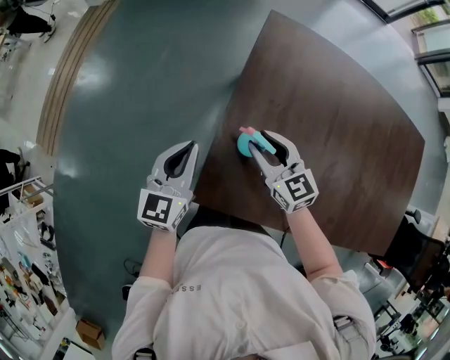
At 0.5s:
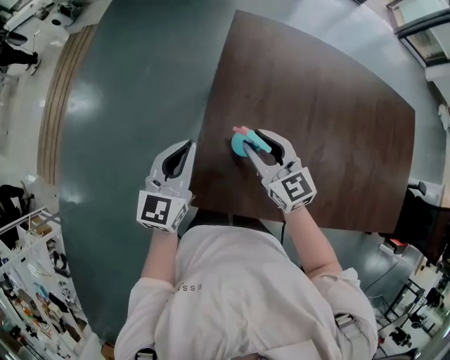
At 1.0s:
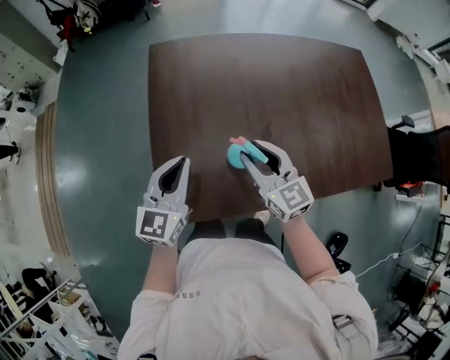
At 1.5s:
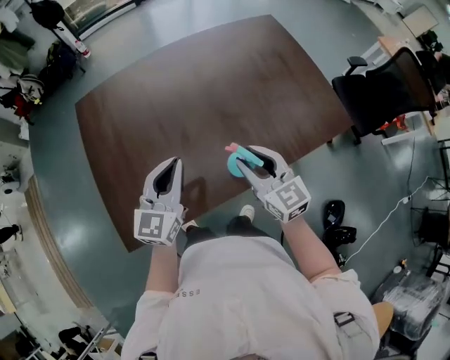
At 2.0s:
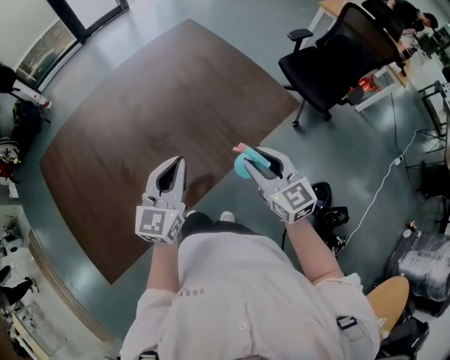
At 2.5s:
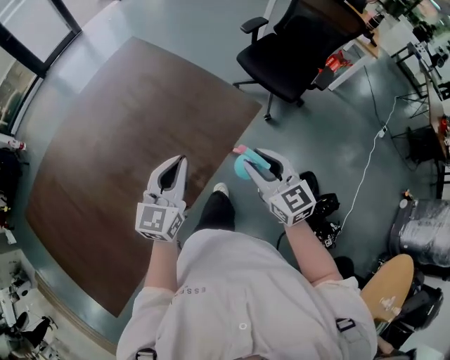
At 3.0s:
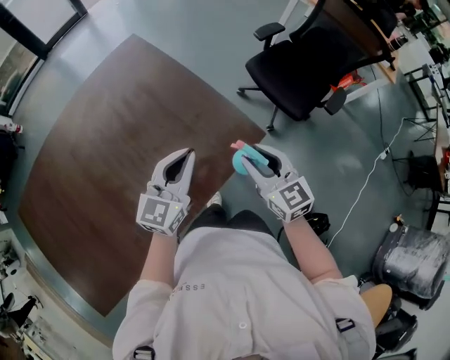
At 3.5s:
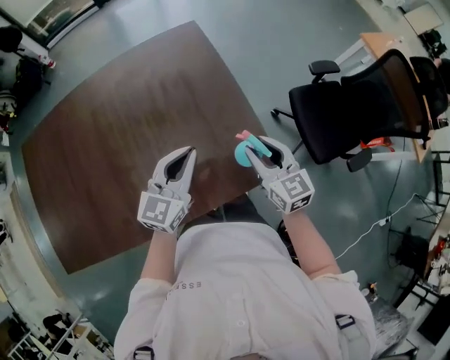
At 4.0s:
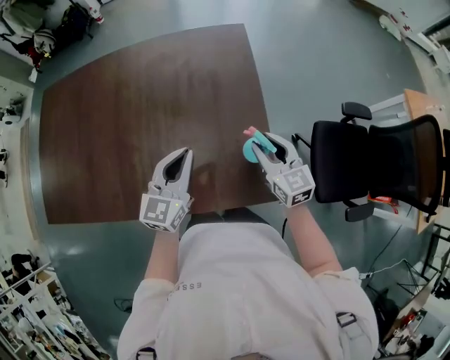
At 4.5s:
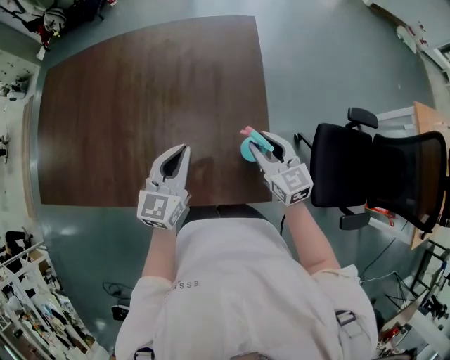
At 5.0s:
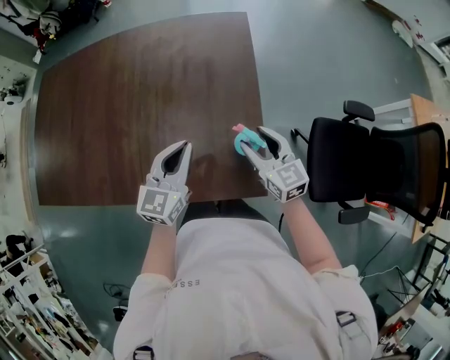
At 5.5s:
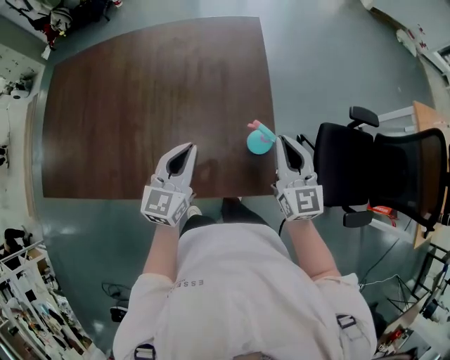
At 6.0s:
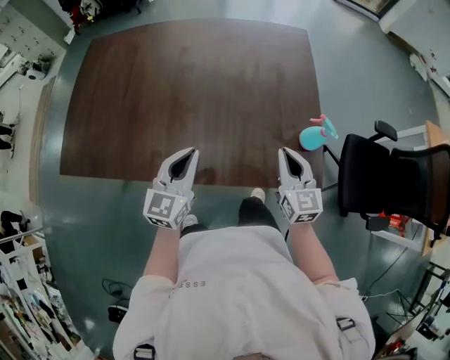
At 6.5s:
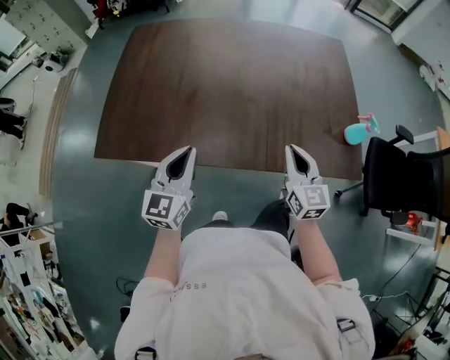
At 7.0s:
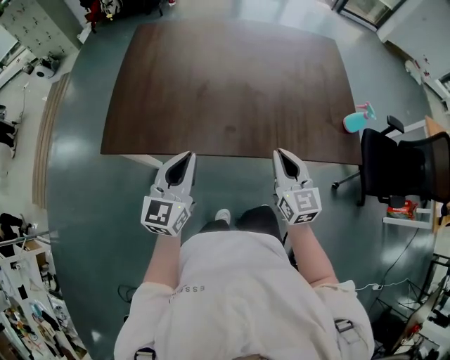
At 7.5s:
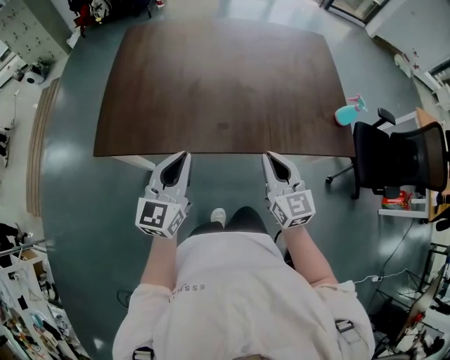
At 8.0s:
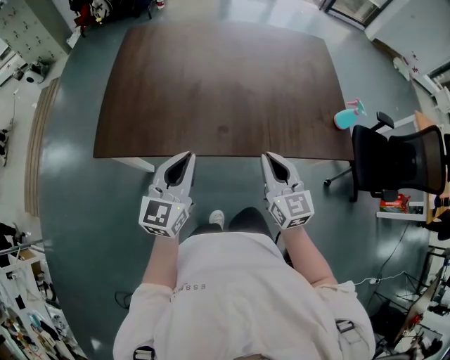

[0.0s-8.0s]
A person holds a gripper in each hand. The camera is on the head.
0.0s to 2.0s: The two grippers travel together, approximately 60 cm. The right gripper changes its angle by approximately 60 degrees. Meanwhile the left gripper swivels some 60 degrees.
2.0s to 4.0s: The right gripper ends up approximately 40 cm from where it was, and rotates about 30 degrees. The left gripper ends up about 30 cm from where it was, and changes its angle by approximately 30 degrees.
4.0s to 6.0s: Both grippers move to the left and backward, some 20 cm. The right gripper closes its fingers.
6.0s to 8.0s: The two grippers go approximately 30 cm to the left and backward.

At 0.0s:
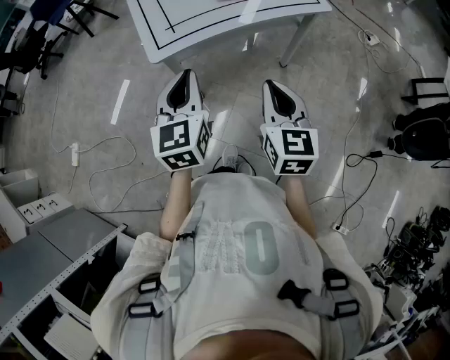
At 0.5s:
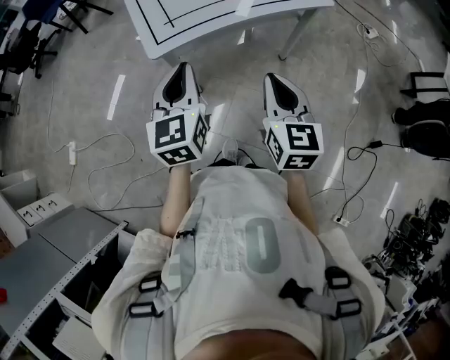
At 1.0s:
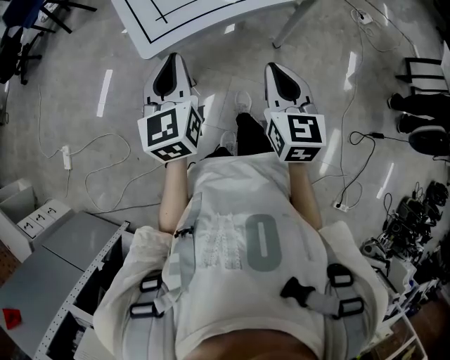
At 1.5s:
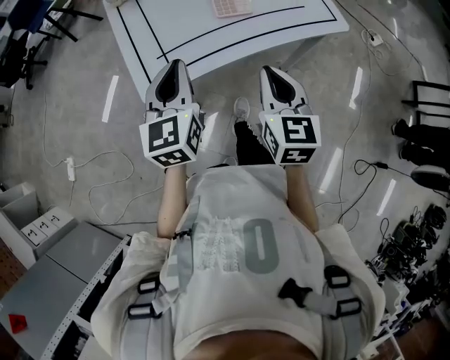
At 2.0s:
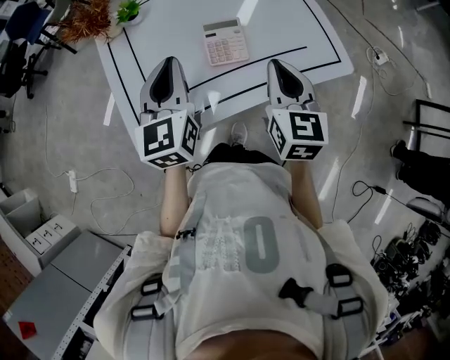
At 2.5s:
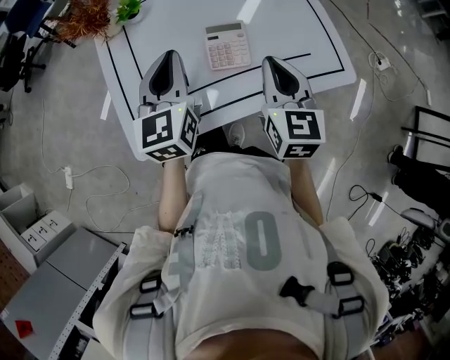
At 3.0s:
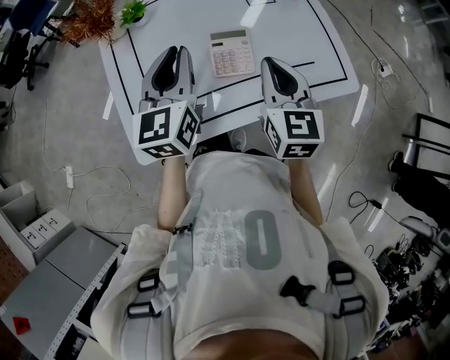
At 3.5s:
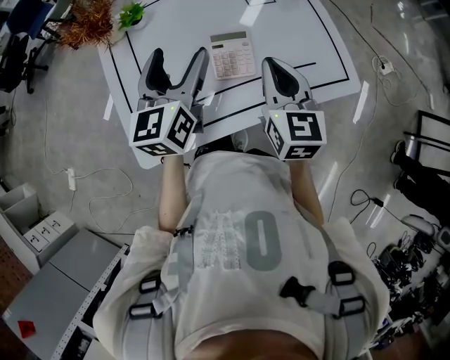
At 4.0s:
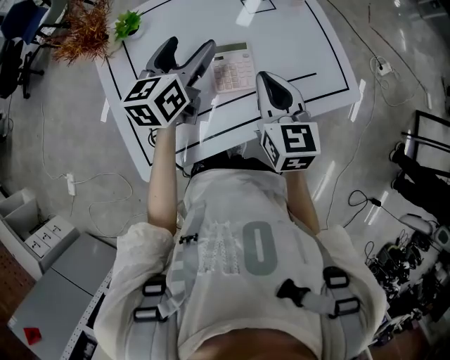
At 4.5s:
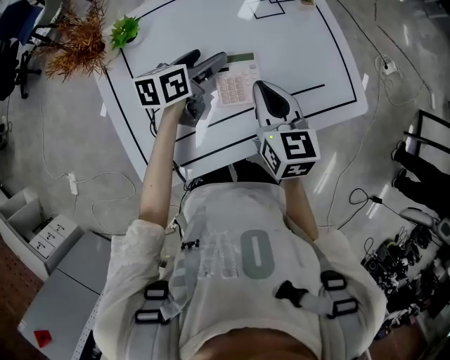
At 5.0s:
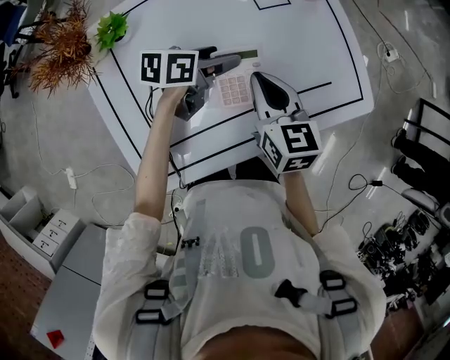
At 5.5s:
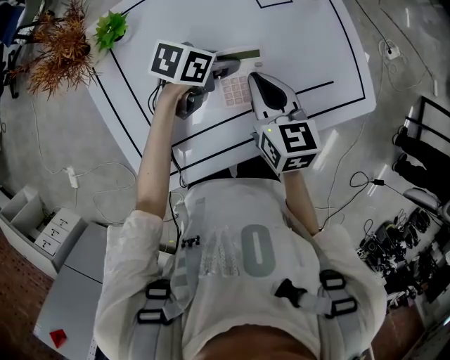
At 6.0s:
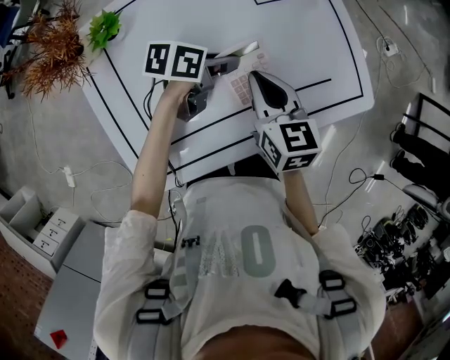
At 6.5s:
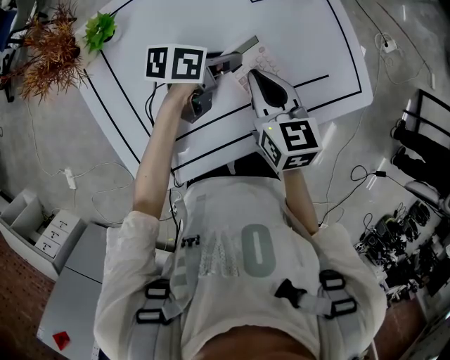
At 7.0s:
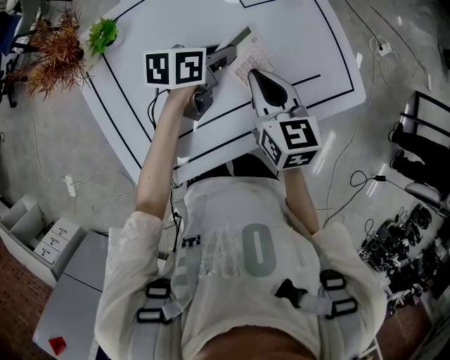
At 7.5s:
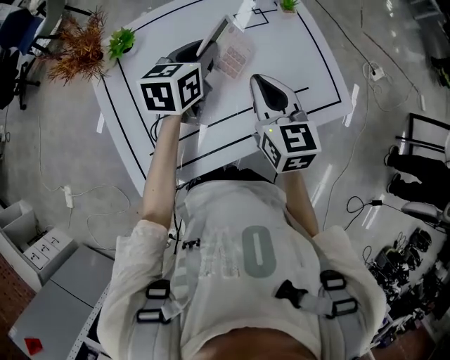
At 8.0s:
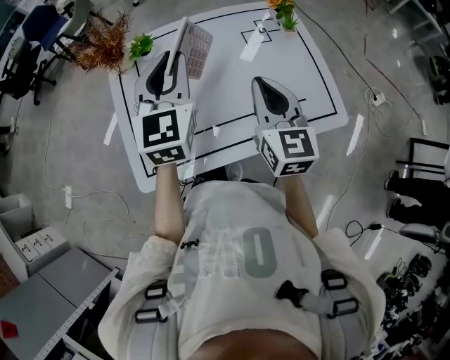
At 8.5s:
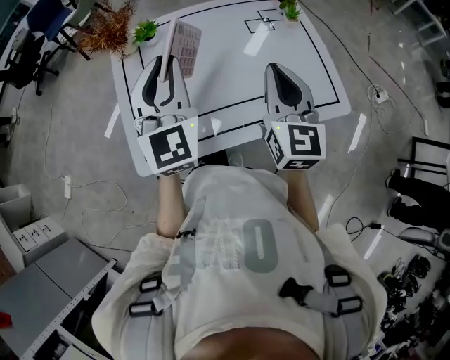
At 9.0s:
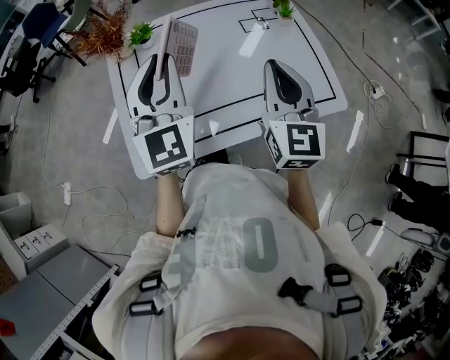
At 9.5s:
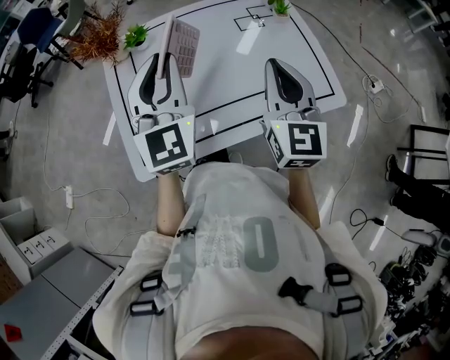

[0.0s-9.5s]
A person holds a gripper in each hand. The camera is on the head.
0.0s to 2.0s: The two grippers go some 40 cm forward.
2.0s to 4.0s: The left gripper moves forward, approximately 15 cm, changes its angle by roughly 30 degrees, and opens, while the right gripper travels forward by roughly 10 cm.
4.0s to 5.5s: The left gripper shifts about 15 cm downward, swivels roughly 50 degrees, and closes, while the right gripper heads downward, covering some 5 cm.
5.5s to 7.5s: The left gripper is displaced upward by about 15 cm, and changes its angle by some 40 degrees; the right gripper is displaced upward by some 10 cm.
7.5s to 9.5s: The right gripper shifts approximately 10 cm upward and backward, and changes its angle by approximately 20 degrees. The left gripper travels backward, upward and to the left by about 20 cm, and swivels roughly 50 degrees.

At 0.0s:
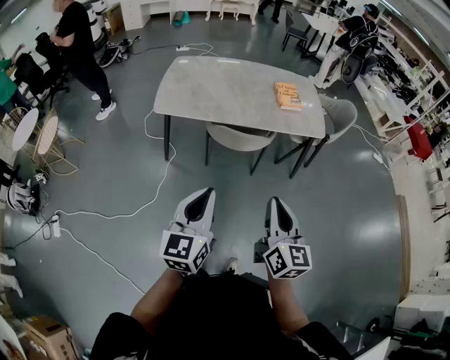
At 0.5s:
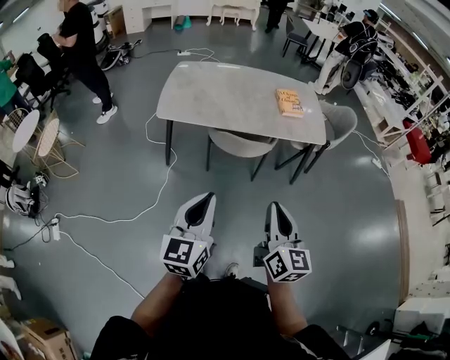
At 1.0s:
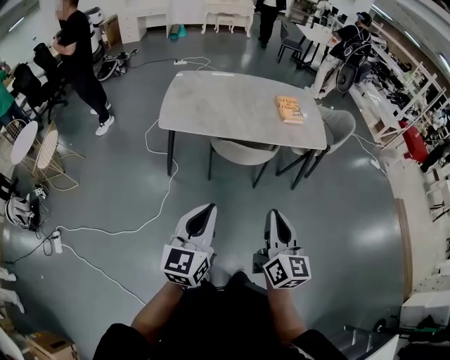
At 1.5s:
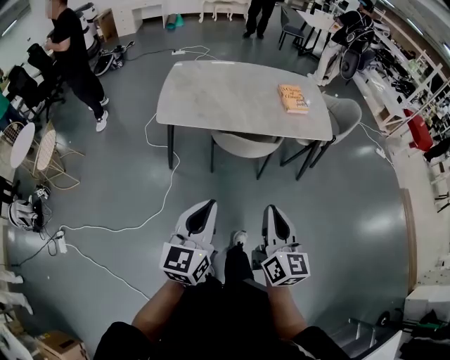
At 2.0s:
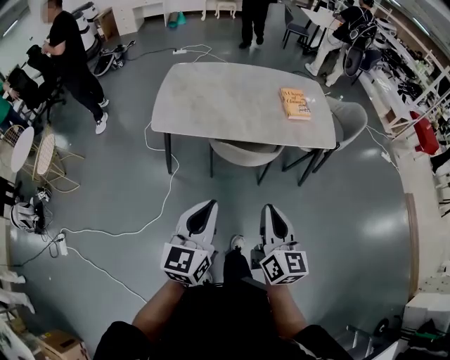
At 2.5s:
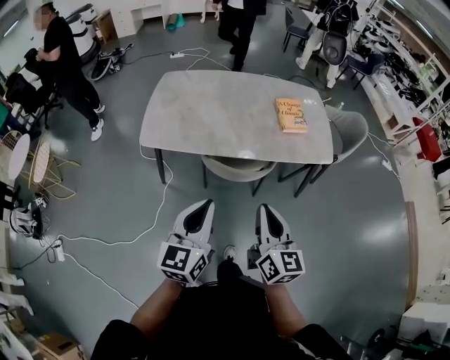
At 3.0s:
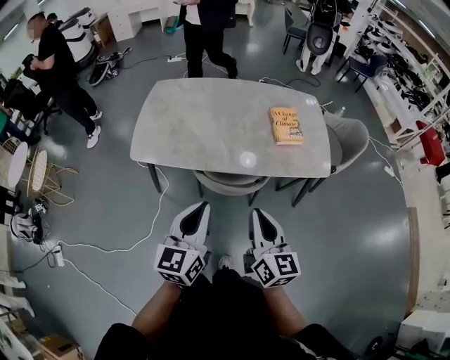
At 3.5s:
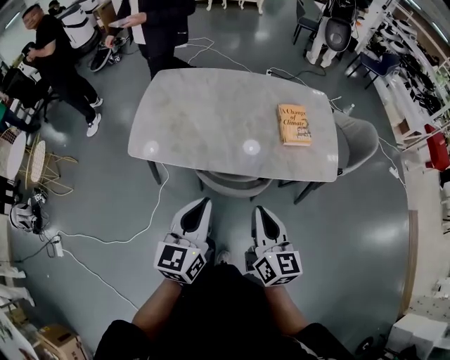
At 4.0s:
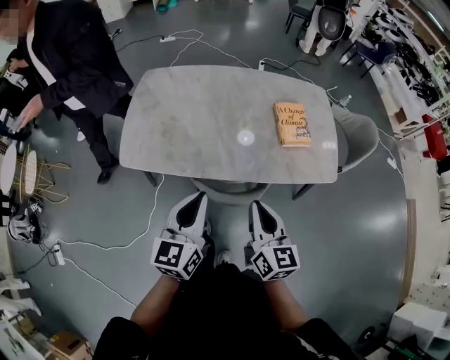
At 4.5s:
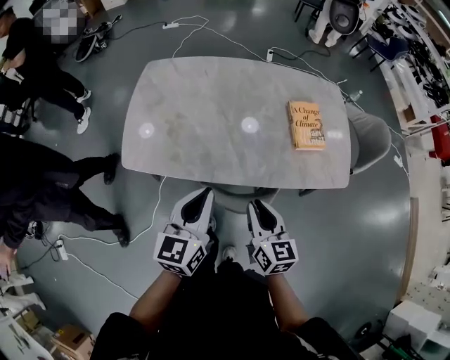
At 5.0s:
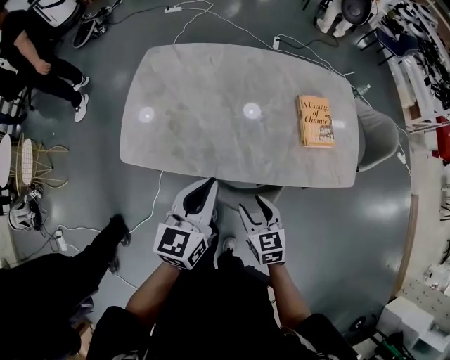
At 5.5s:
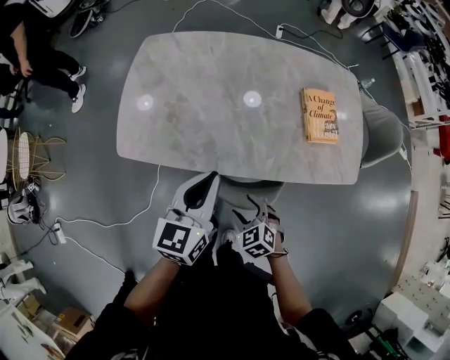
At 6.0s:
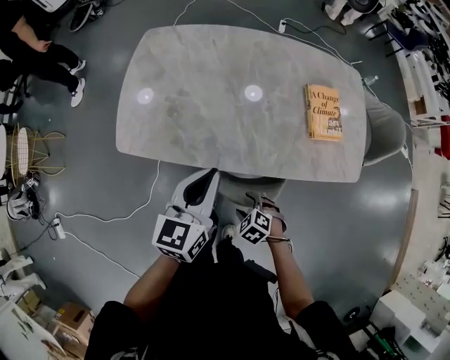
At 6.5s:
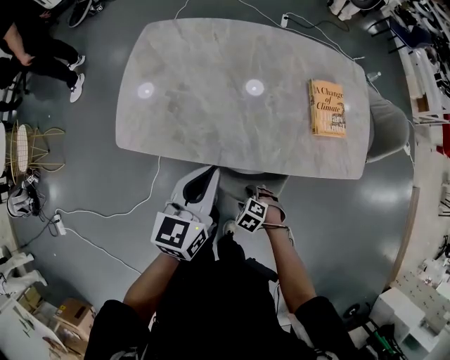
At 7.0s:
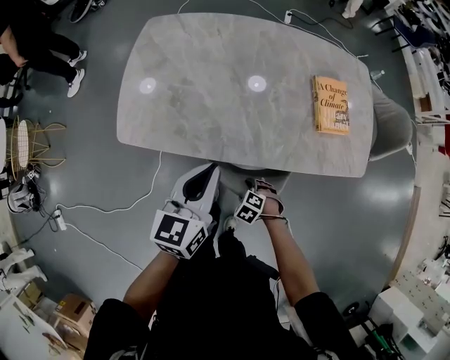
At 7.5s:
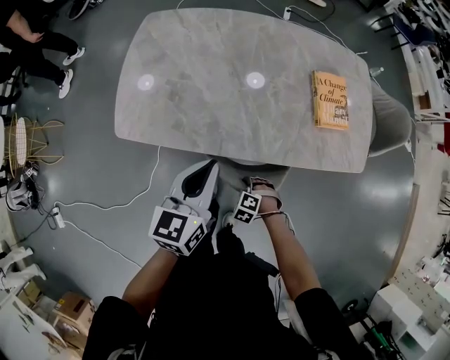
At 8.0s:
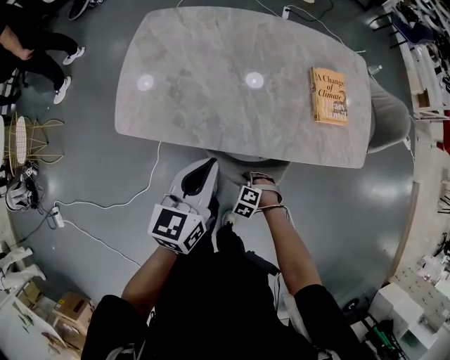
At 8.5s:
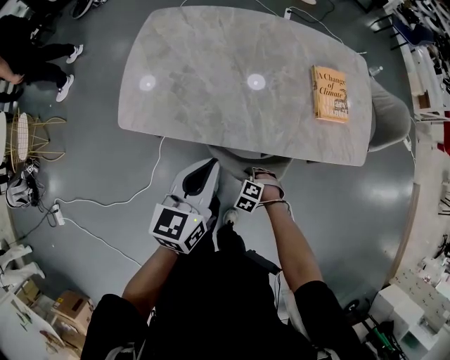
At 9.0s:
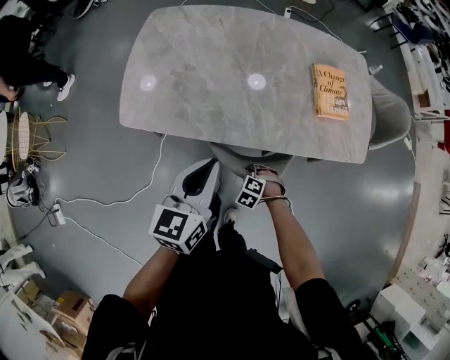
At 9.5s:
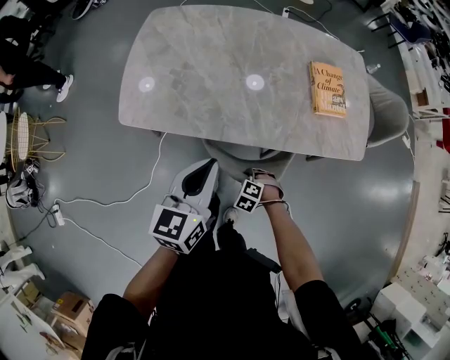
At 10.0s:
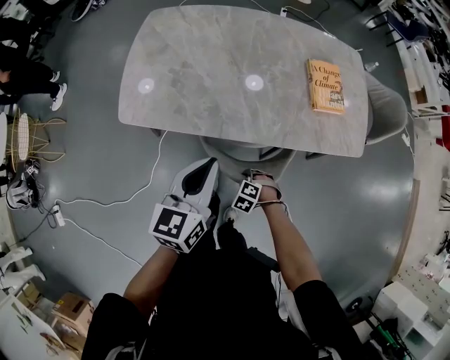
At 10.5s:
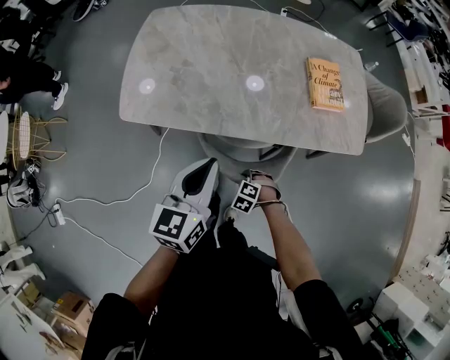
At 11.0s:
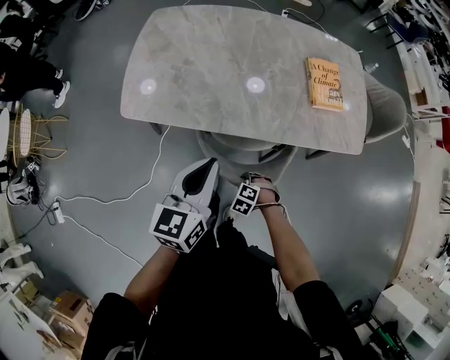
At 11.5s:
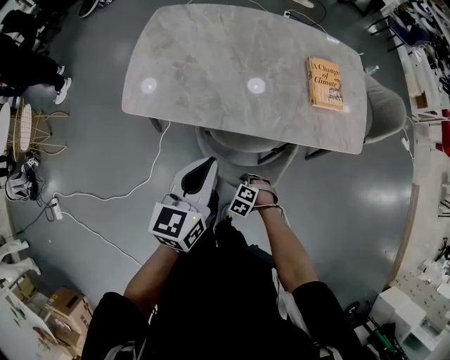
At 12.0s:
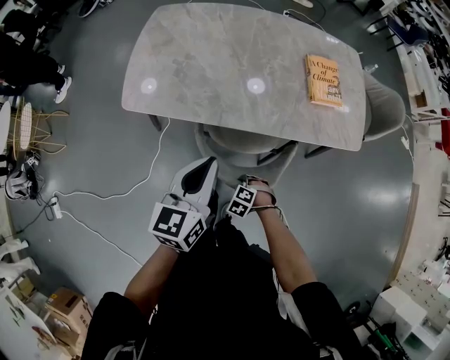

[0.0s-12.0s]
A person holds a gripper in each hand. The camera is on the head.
0.0s to 2.0s: Both grippers travel together forward, about 10 cm.
2.0s to 4.0s: Both grippers travel together forward, about 30 cm.
4.0s to 6.0s: The left gripper is displaced forward and downward by roughly 15 cm, while the right gripper is displaced downward by some 30 cm, tilts its fingers approximately 60 degrees downward, and opens.
6.0s to 8.0s: The right gripper travels downward by approximately 10 cm, rotates approximately 20 degrees, and closes up.
8.0s to 10.0s: The left gripper changes place by approximately 5 cm.
10.0s to 12.0s: The right gripper shifts by roughly 5 cm. Meanwhile the left gripper moves approximately 5 cm.
